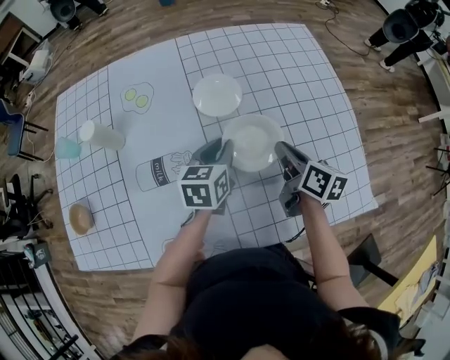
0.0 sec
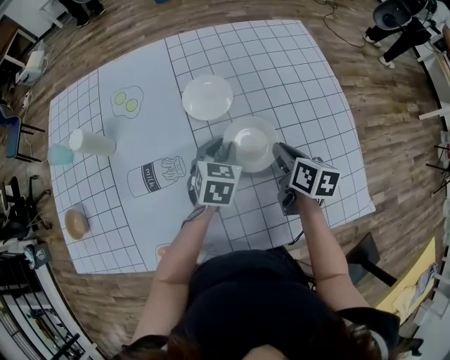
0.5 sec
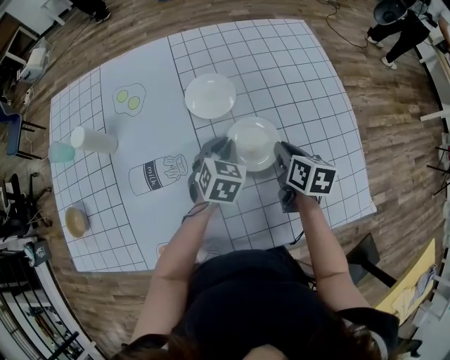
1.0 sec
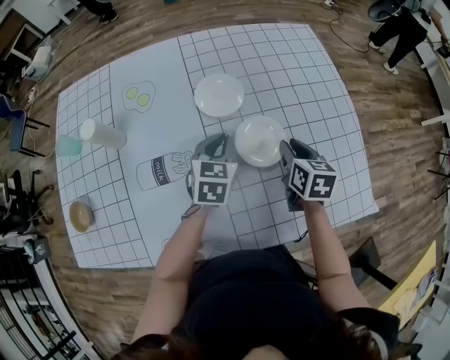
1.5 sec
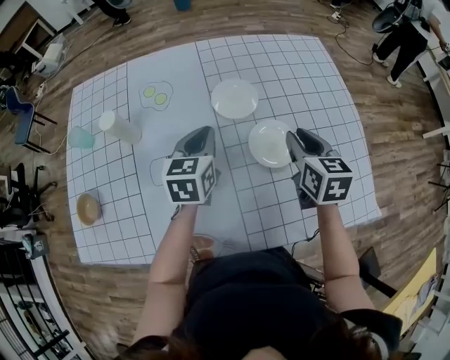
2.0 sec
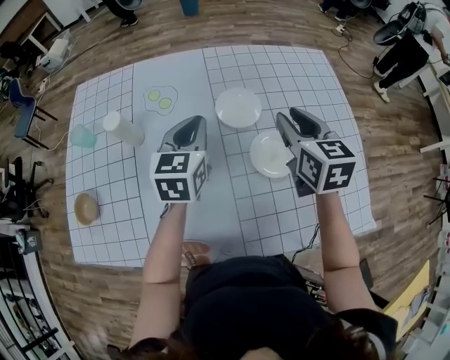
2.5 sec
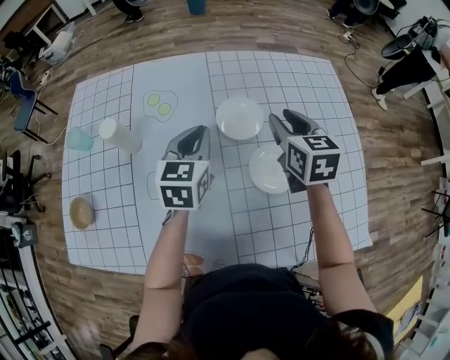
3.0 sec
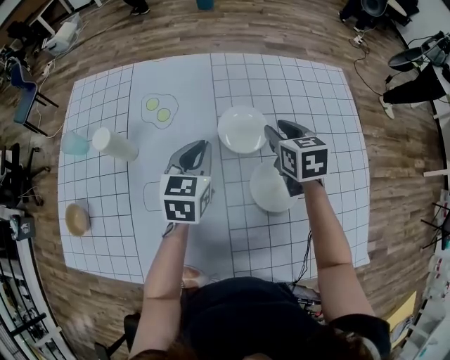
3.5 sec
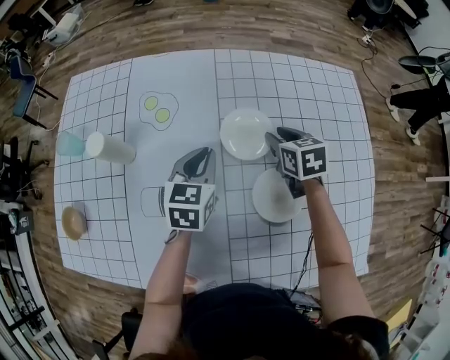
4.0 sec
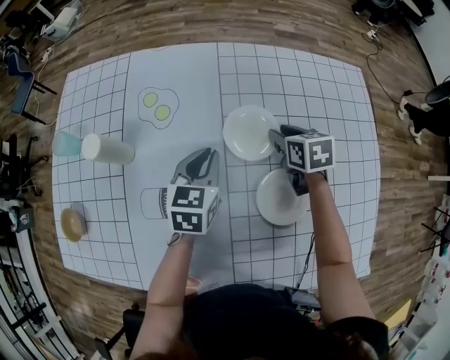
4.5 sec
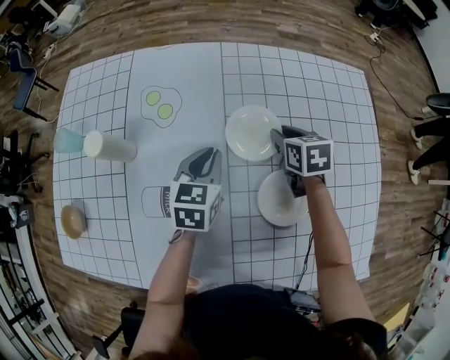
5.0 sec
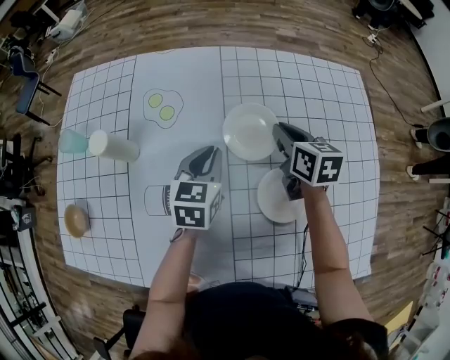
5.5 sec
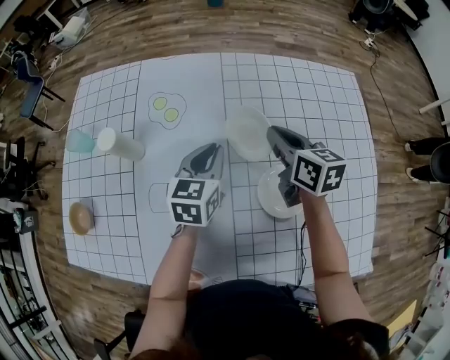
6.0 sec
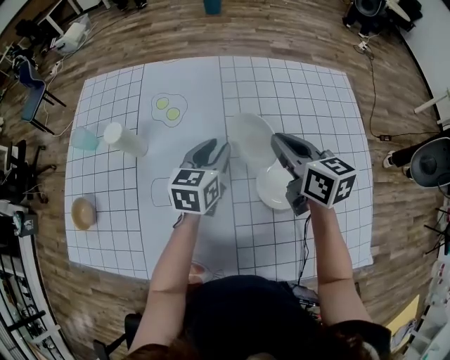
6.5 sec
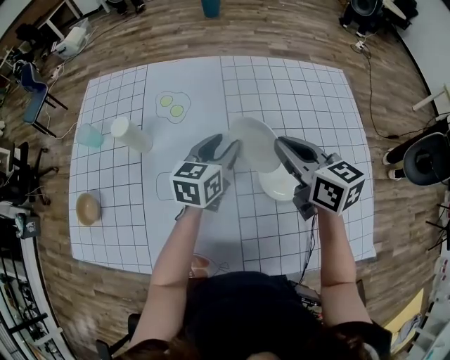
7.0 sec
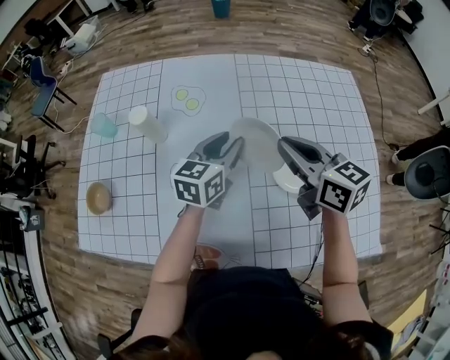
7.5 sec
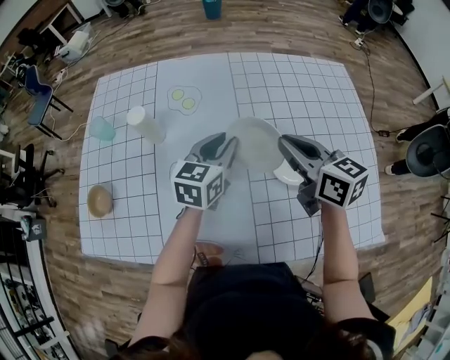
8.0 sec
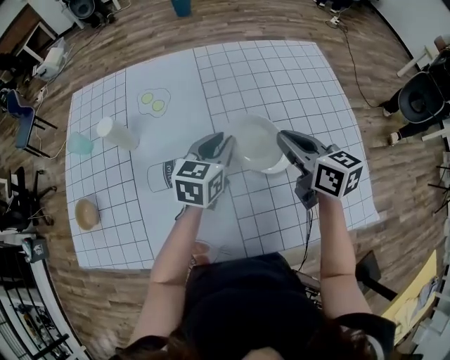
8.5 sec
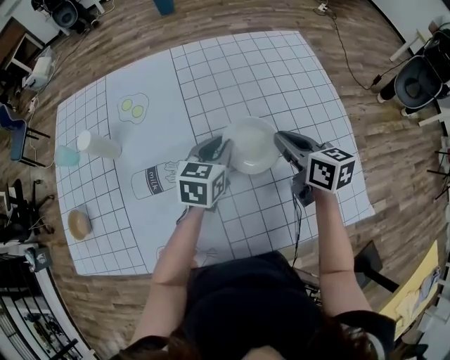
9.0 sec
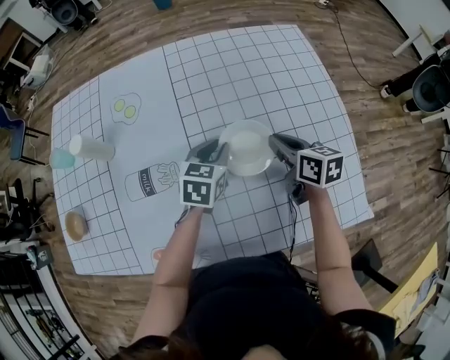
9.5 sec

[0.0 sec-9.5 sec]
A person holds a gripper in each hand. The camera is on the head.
0.0 sec to 2.0 sec: The left gripper heads to the left and upward, covering approximately 10 cm. Meanwhile the right gripper goes about 5 cm upward, and rotates some 30 degrees.
2.0 sec to 4.0 sec: The right gripper moves forward and downward, some 20 cm, and rotates approximately 20 degrees. The left gripper heads forward and downward, covering about 10 cm.
4.0 sec to 5.5 sec: The right gripper closes.
5.5 sec to 7.5 sec: The left gripper heads upward and backward, covering some 10 cm, and opens its fingers. Meanwhile the right gripper travels backward, upward and to the left by roughly 25 cm, and changes its angle by about 20 degrees.
7.5 sec to 9.5 sec: Both grippers move to the right and downward, roughly 20 cm. The right gripper turns by approximately 30 degrees; the left gripper turns by approximately 20 degrees.

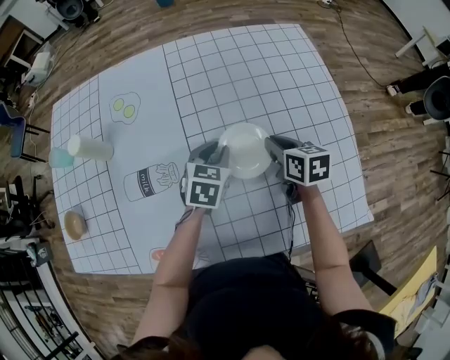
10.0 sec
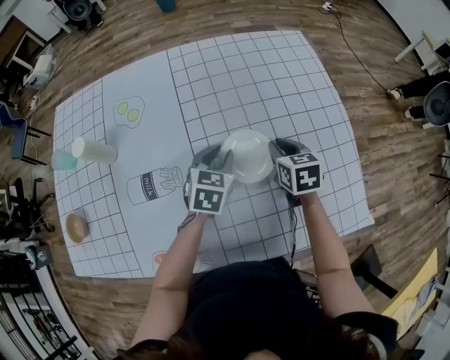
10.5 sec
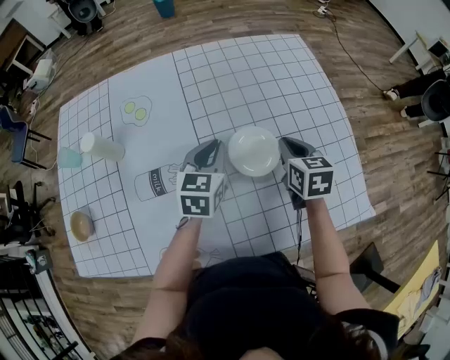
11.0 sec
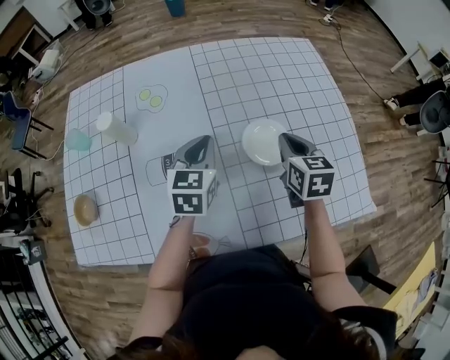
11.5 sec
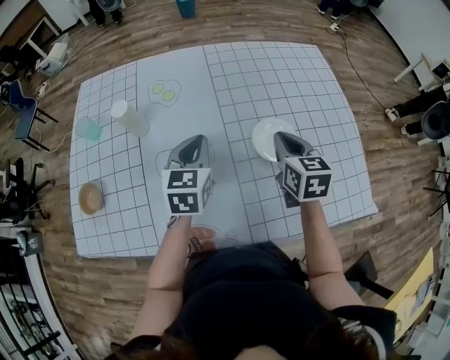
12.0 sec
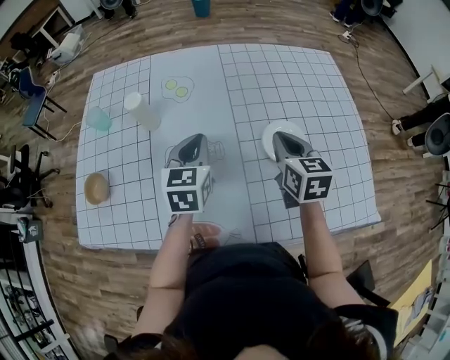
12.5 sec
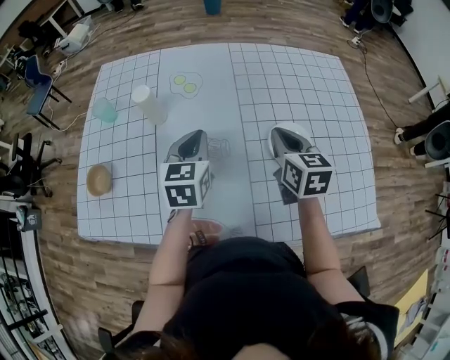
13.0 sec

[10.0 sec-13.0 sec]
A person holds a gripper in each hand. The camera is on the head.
10.0 sec to 11.5 sec: The left gripper is displaced to the left and upward by approximately 15 cm; the right gripper is displaced upward and to the left by approximately 10 cm, and rotates some 20 degrees.
11.5 sec to 13.0 sec: The grippers both shift to the left by some 10 cm.

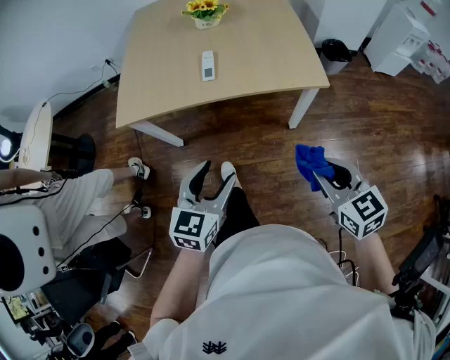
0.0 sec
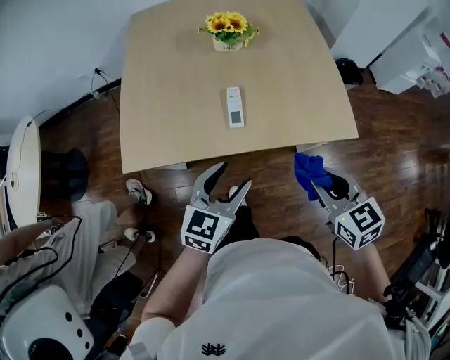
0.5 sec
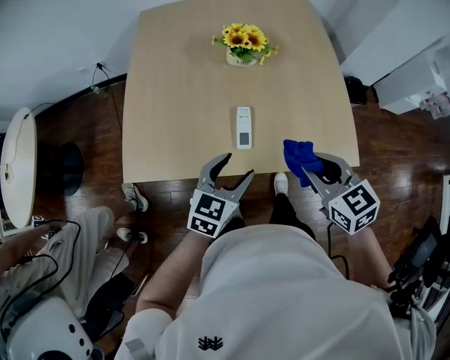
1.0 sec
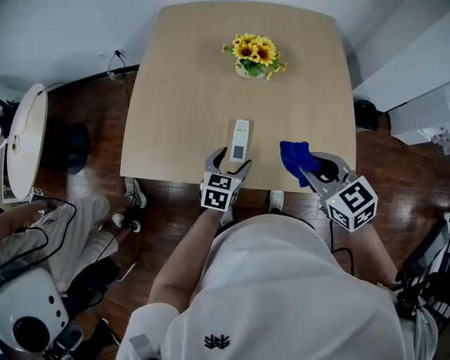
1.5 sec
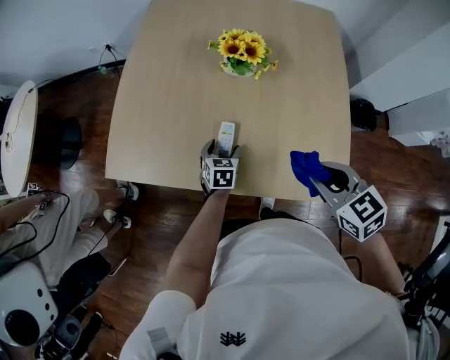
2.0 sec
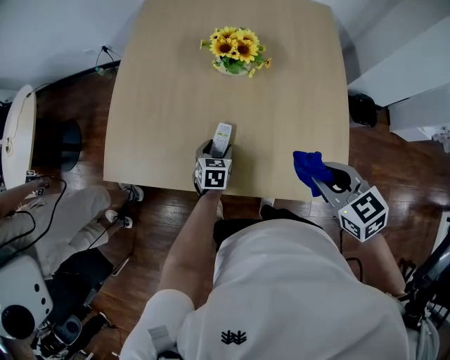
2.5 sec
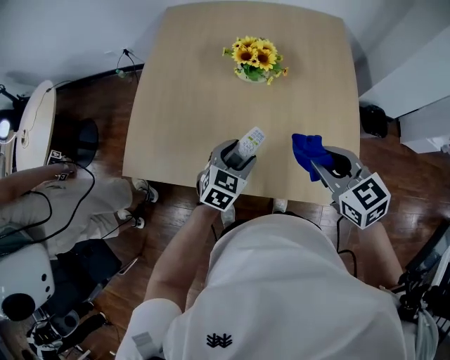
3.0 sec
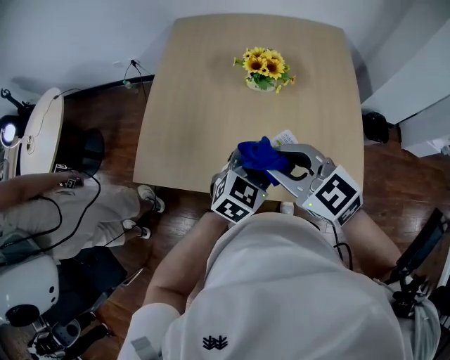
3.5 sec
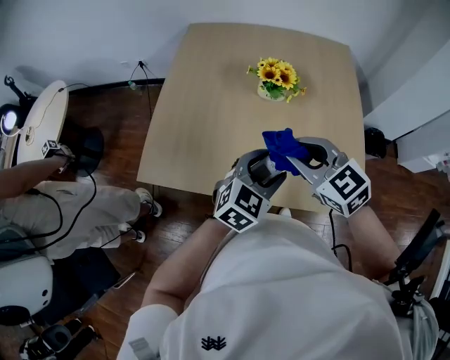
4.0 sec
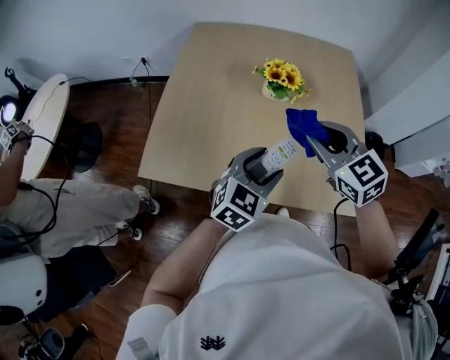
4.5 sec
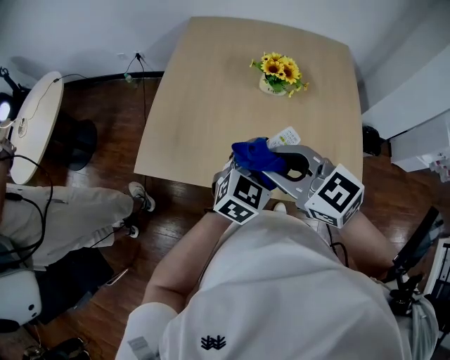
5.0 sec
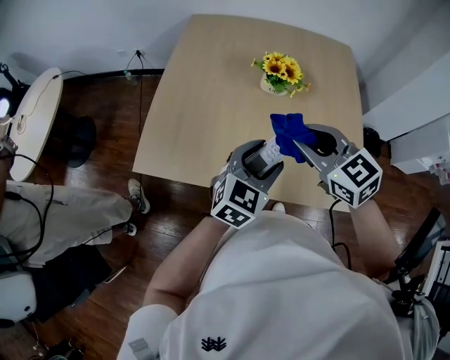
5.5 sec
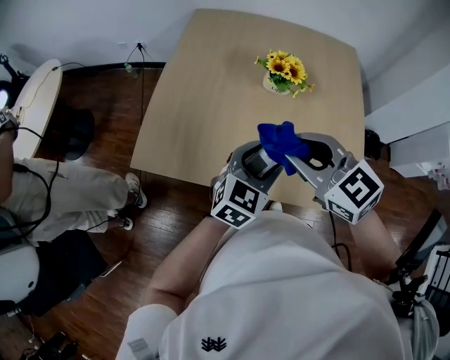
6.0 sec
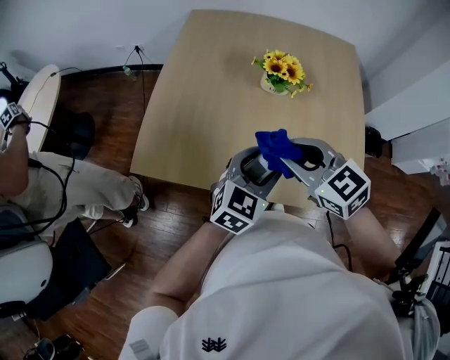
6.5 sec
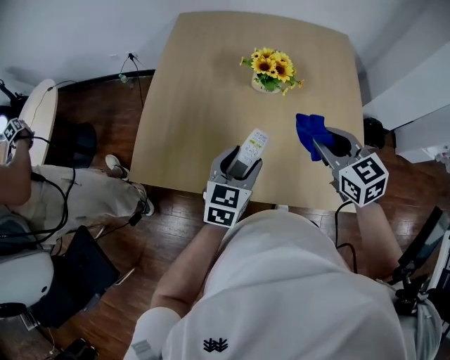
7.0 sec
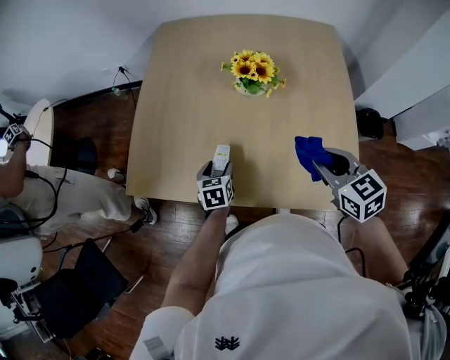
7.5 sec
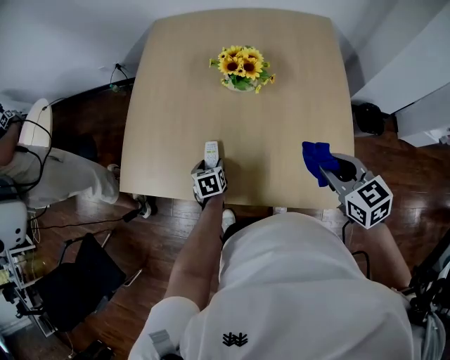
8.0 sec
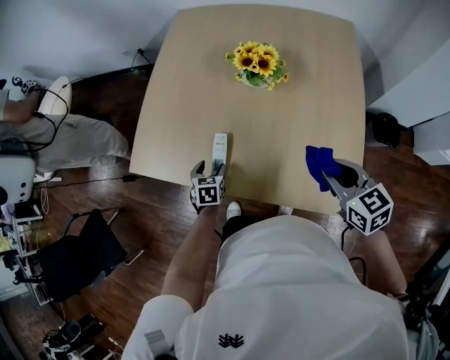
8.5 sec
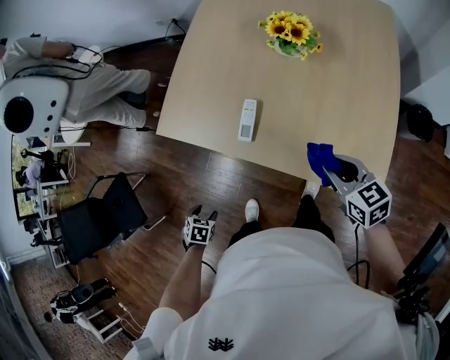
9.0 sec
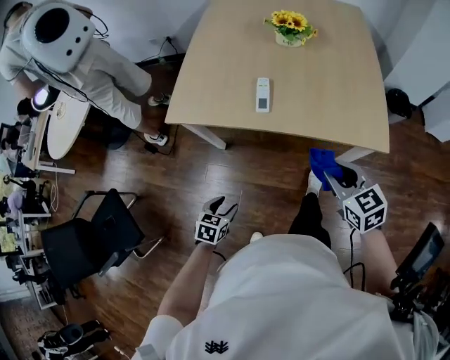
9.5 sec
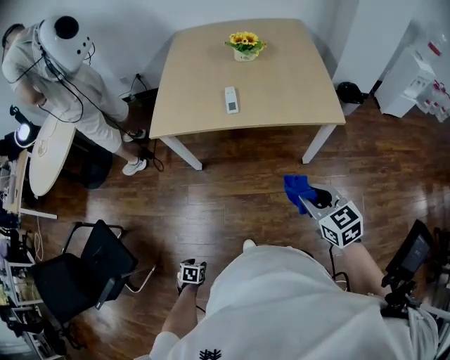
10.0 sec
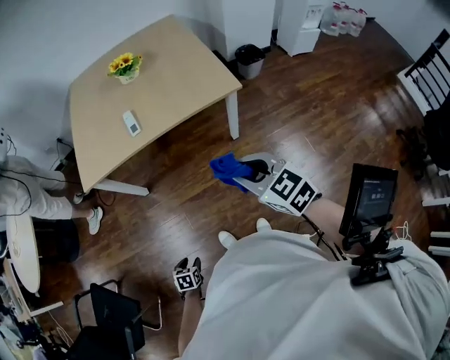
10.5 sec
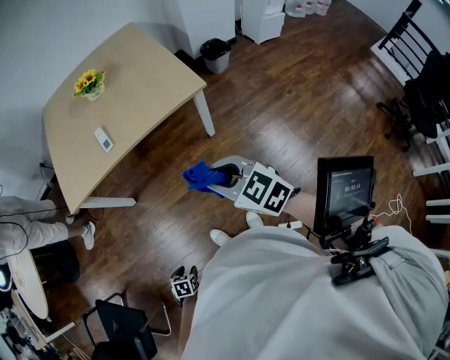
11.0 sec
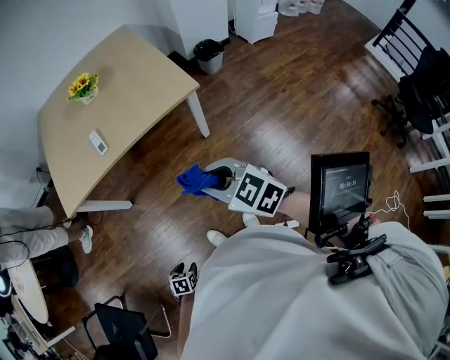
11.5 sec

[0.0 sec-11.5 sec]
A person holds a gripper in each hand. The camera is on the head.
0.0 sec to 2.0 sec: Both grippers are carried some 40 cm. The left gripper swivels approximately 40 degrees; the right gripper turns by about 20 degrees.
2.0 sec to 4.0 sec: The right gripper moves to the left, forward and upward, some 20 cm, and turns by roughly 20 degrees; the left gripper is displaced upward by approximately 25 cm, and changes its angle by about 40 degrees.
4.0 sec to 6.0 sec: The right gripper moves left and right over some 10 cm, changing direction 2 times.
6.0 sec to 7.5 sec: The right gripper goes roughly 20 cm to the right and downward, and changes its angle by approximately 30 degrees; the left gripper moves downward, about 20 cm, and rotates about 40 degrees.
7.5 sec to 9.5 sec: The left gripper changes place by about 40 cm, and turns by some 20 degrees. Meanwhile the right gripper changes place by some 25 cm.
9.5 sec to 11.5 sec: The right gripper shifts by some 30 cm. Meanwhile the left gripper changes place by some 30 cm, and swivels roughly 30 degrees.

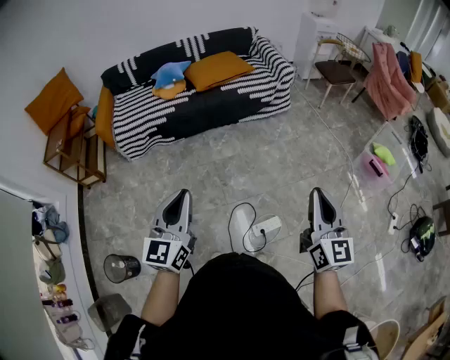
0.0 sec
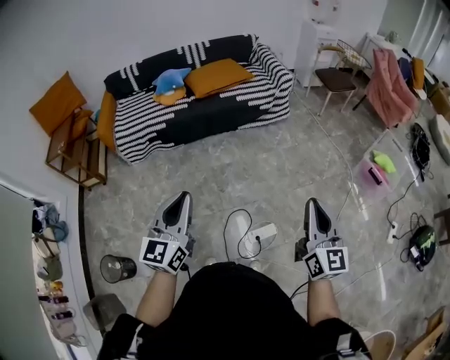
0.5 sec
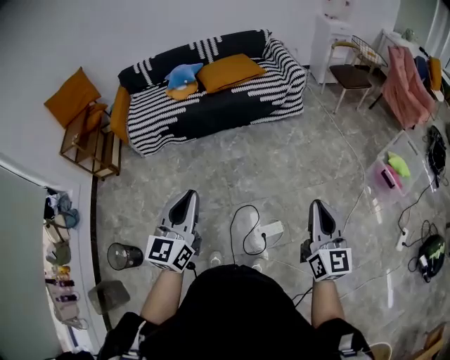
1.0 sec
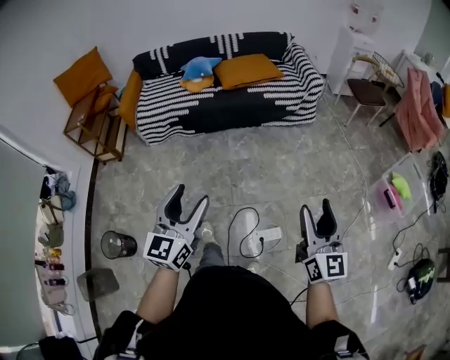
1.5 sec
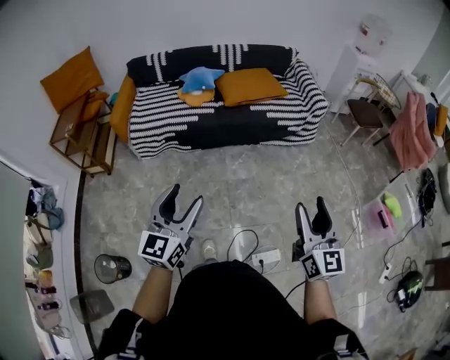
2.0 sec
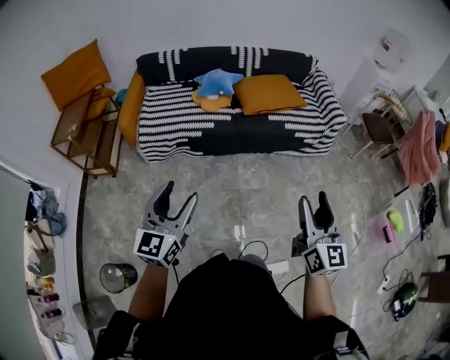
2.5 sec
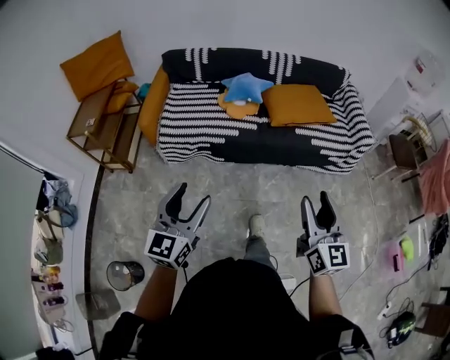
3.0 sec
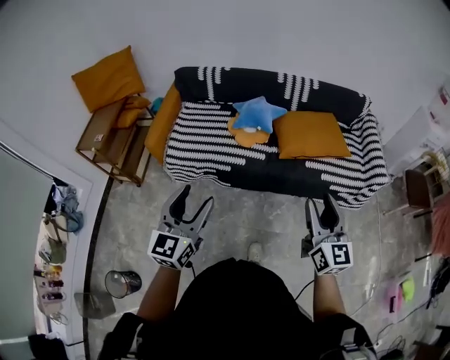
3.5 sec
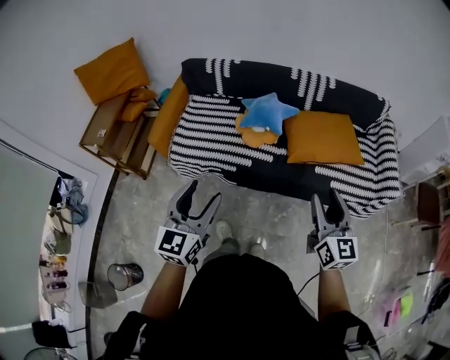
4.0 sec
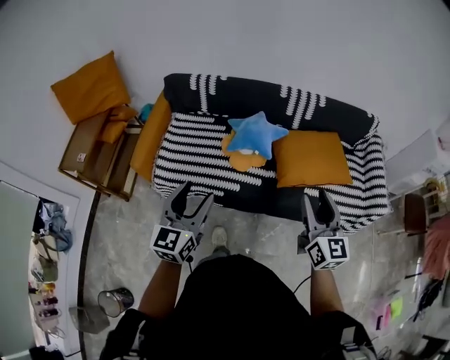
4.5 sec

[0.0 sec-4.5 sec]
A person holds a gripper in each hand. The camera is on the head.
0.0 sec to 2.0 sec: Both grippers move forward and to the left, approximately 15 cm. The right gripper opens its fingers. Meanwhile the left gripper opens its fingers.
2.0 sec to 4.5 sec: Both grippers are carried forward, about 60 cm.
